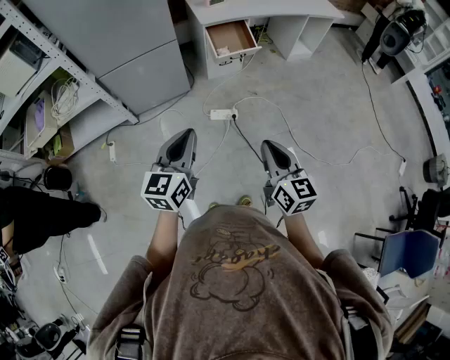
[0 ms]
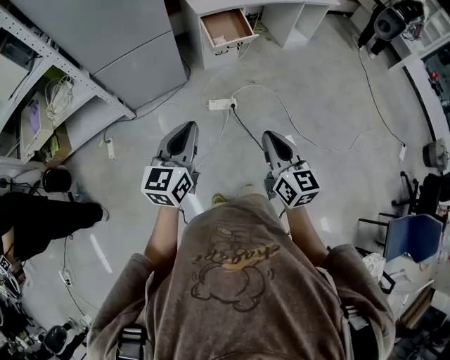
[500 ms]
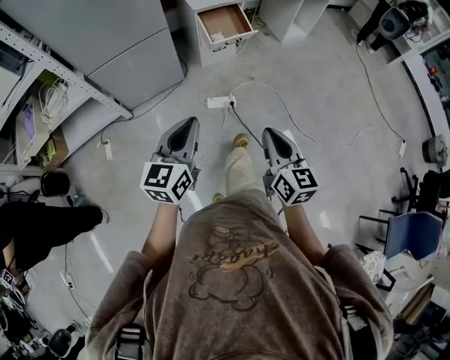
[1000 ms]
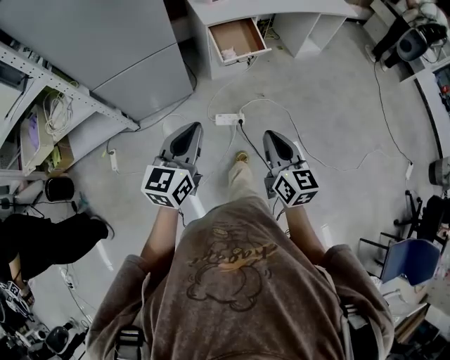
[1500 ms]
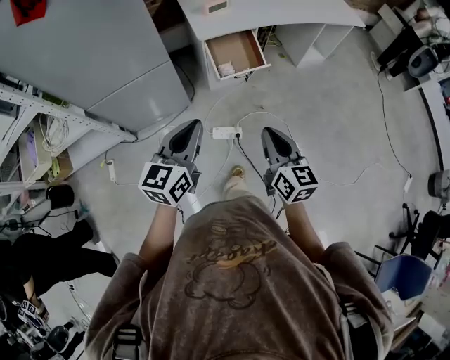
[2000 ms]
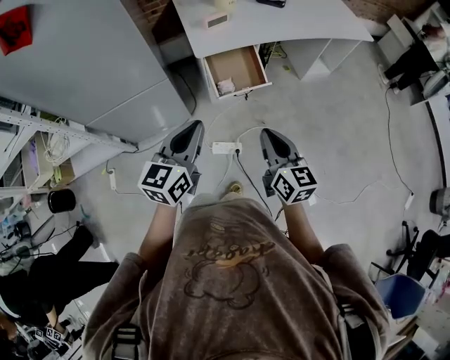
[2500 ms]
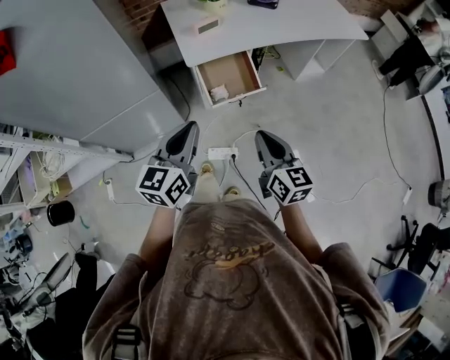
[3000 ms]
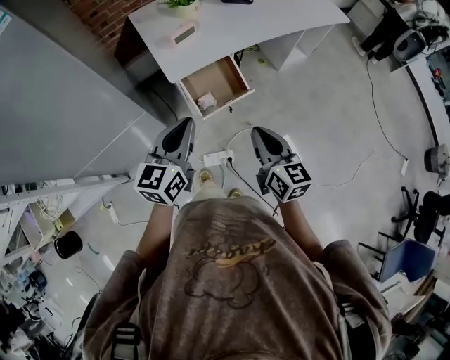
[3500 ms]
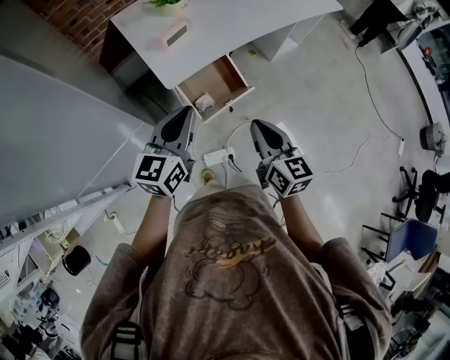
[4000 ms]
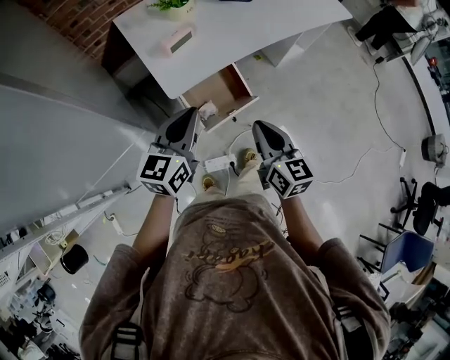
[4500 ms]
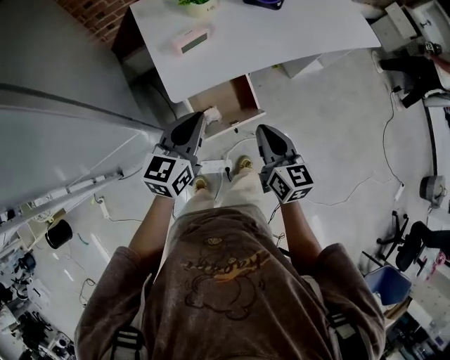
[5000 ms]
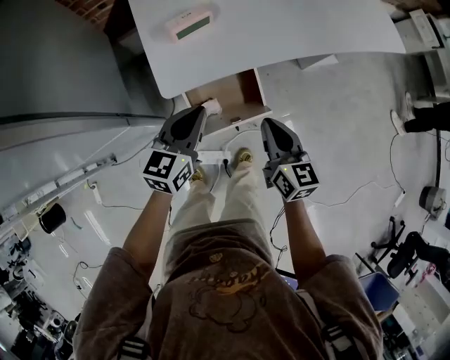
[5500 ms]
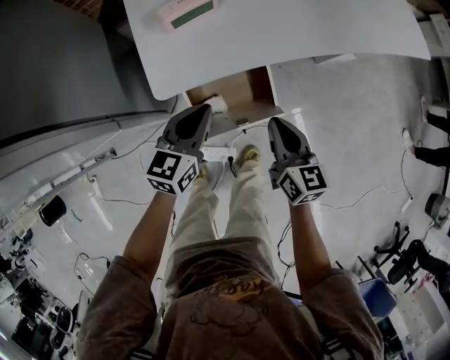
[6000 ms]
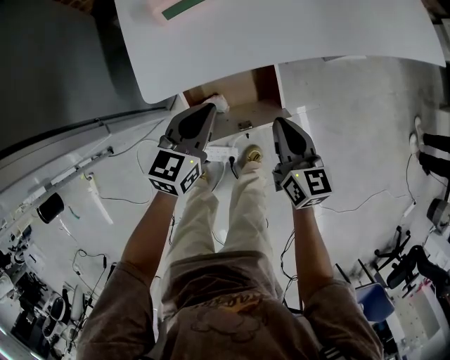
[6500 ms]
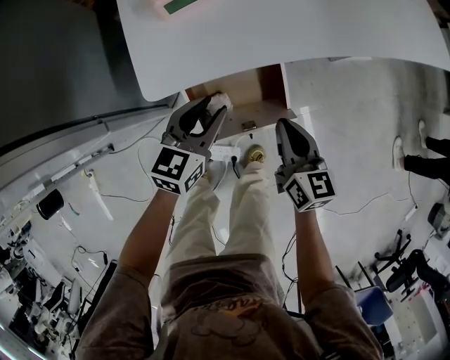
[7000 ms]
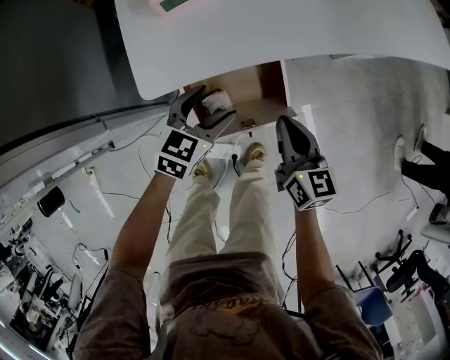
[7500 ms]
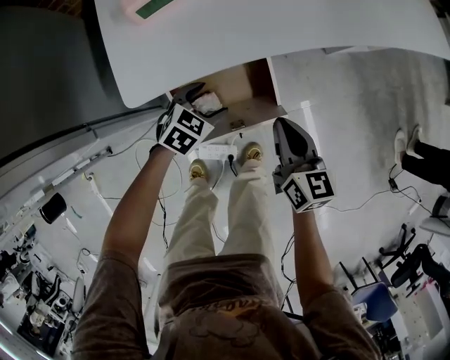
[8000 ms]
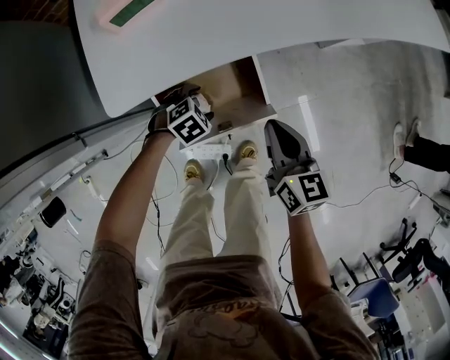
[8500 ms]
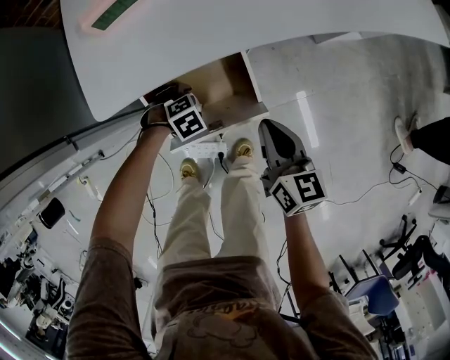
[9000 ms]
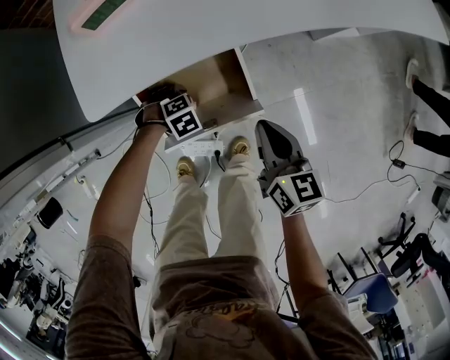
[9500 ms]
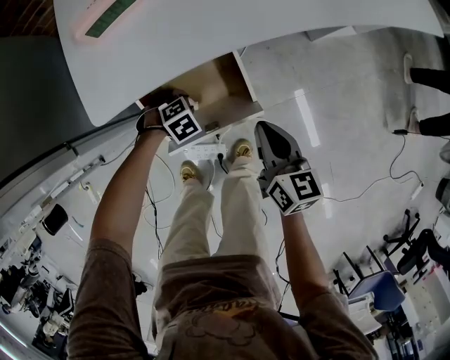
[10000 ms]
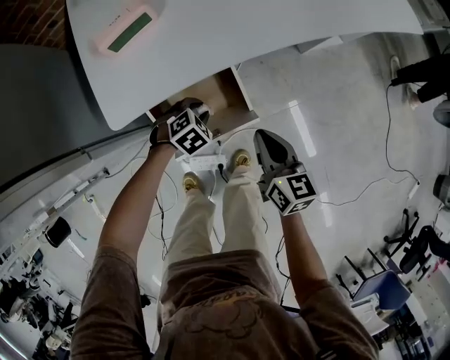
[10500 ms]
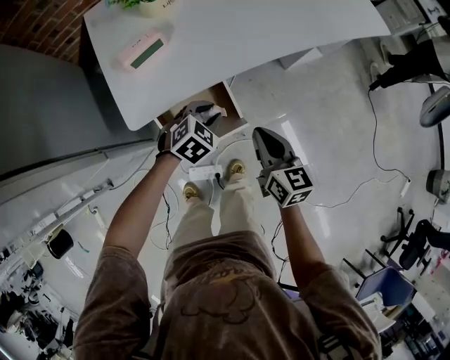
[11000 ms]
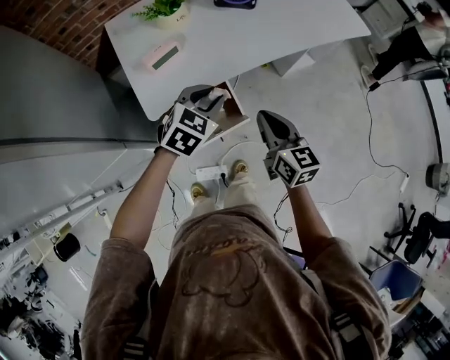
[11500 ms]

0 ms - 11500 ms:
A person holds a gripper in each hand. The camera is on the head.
0 ms - 2000 ms: Both grippers move forward, about 25 cm.
2000 ms - 4000 ms: The grippers both shift forward by about 30 cm.
4000 ms - 6000 ms: The right gripper travels forward and downward by approximately 25 cm. Meanwhile the left gripper travels downward and forward by roughly 25 cm.
6000 ms - 7500 ms: The left gripper heads downward, covering roughly 10 cm, and opens, while the right gripper shifts about 5 cm downward.
7500 ms - 9500 ms: The right gripper ends up about 5 cm from where it was. Meanwhile the left gripper goes about 20 cm downward, points its fingers roughly 50 degrees further downward, and closes up.
9500 ms - 11500 ms: The left gripper goes roughly 40 cm upward, and tilts its fingers some 50 degrees upward. Meanwhile the right gripper goes roughly 25 cm upward.

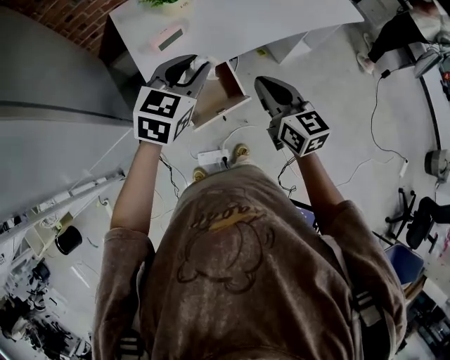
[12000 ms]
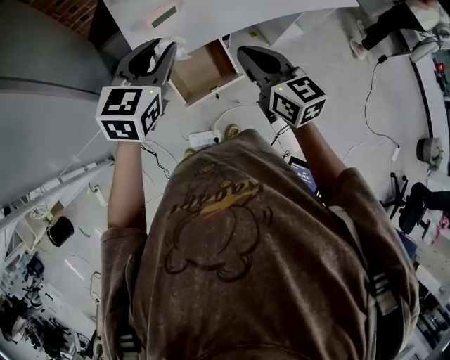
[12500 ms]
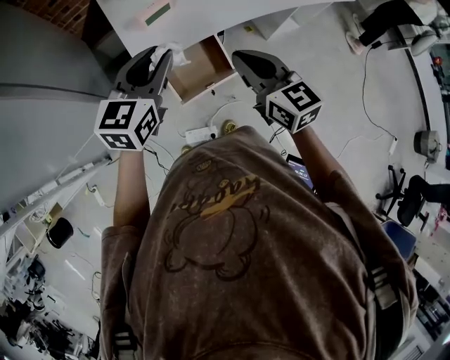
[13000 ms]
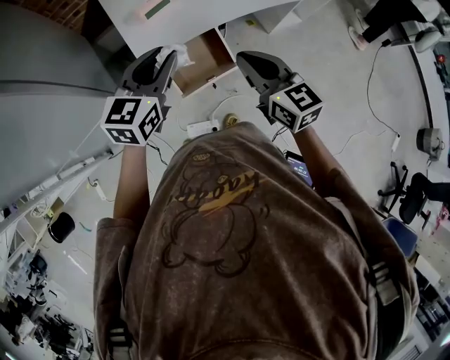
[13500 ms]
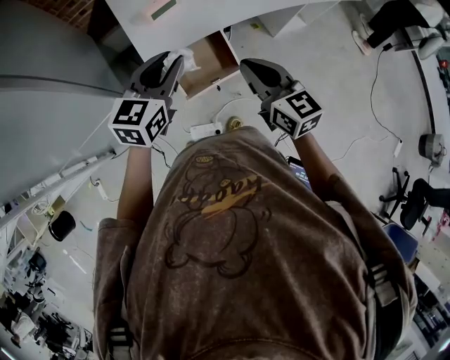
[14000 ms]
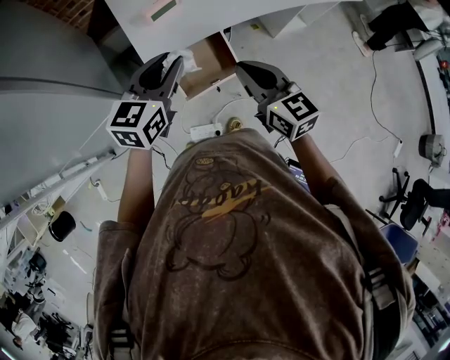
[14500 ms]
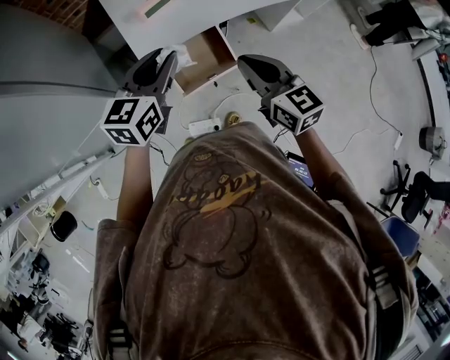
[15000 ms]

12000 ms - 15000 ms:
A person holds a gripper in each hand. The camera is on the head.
12000 ms - 13500 ms: The left gripper moves to the left and backward, some 10 cm; the right gripper changes place by some 5 cm.
13500 ms - 15000 ms: The grippers stay close to where they were, moving slightly.

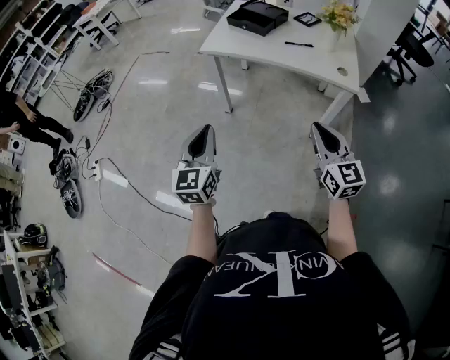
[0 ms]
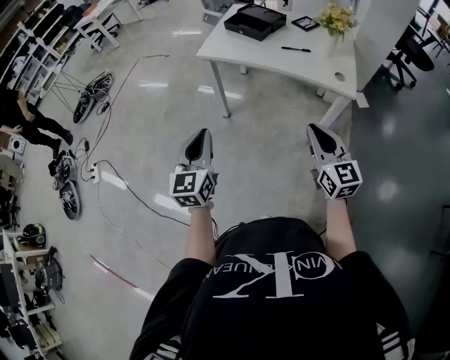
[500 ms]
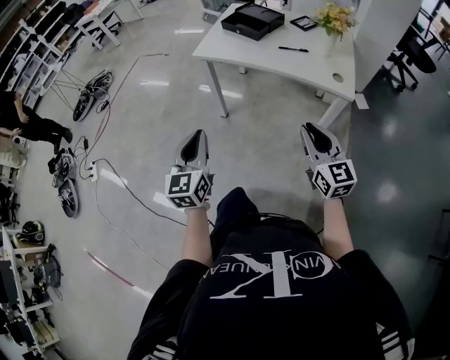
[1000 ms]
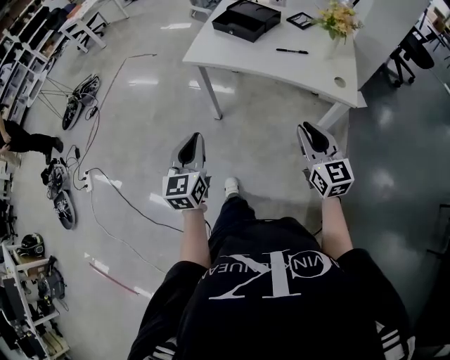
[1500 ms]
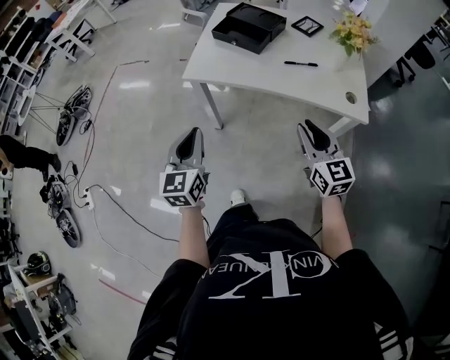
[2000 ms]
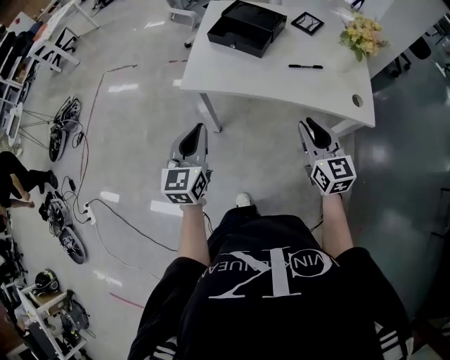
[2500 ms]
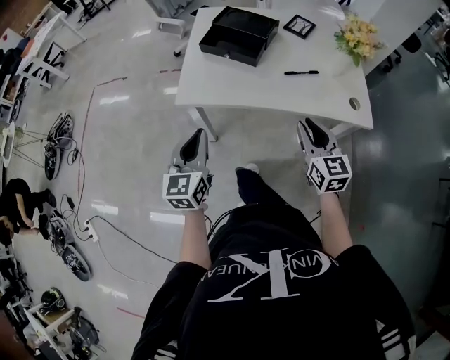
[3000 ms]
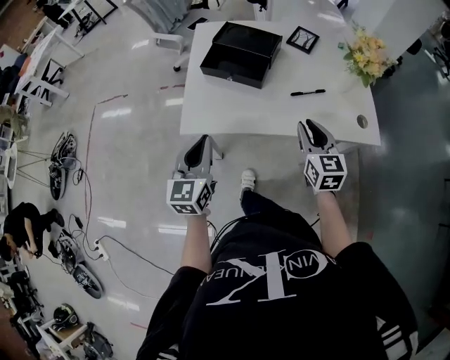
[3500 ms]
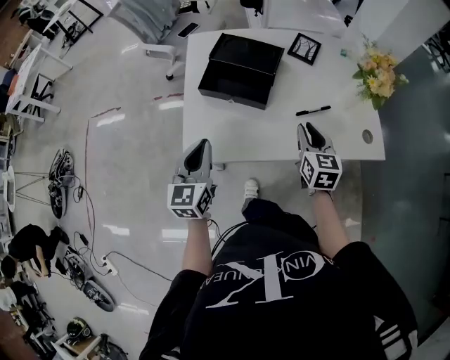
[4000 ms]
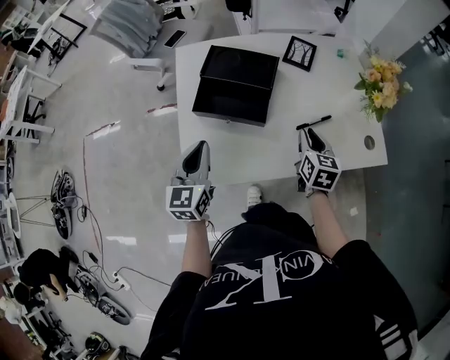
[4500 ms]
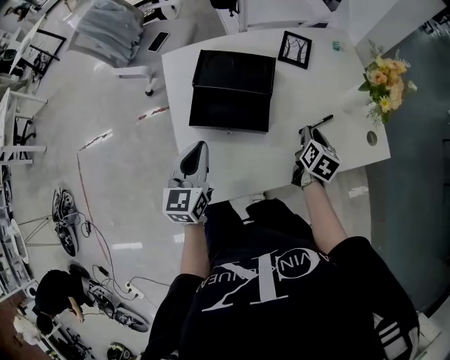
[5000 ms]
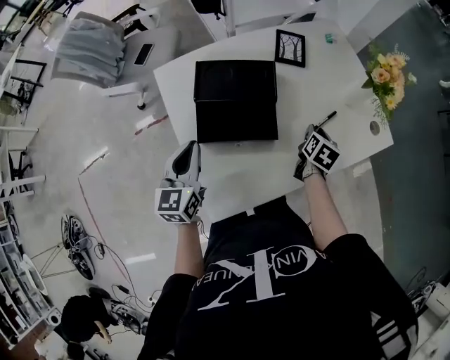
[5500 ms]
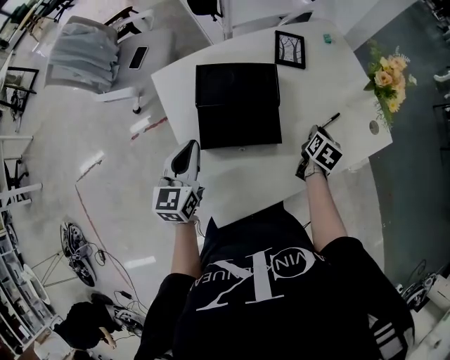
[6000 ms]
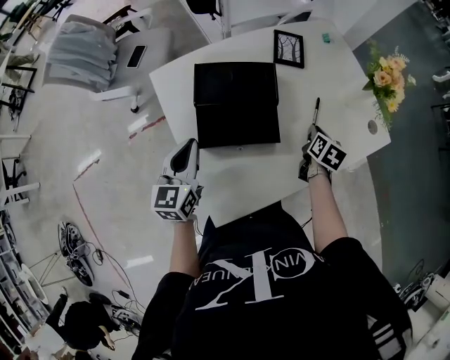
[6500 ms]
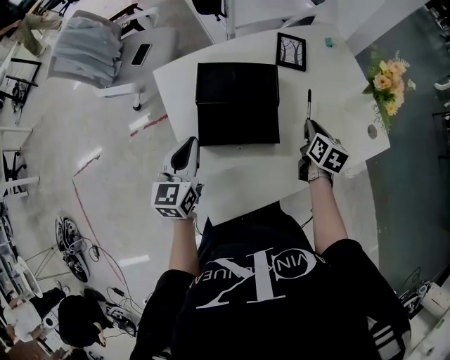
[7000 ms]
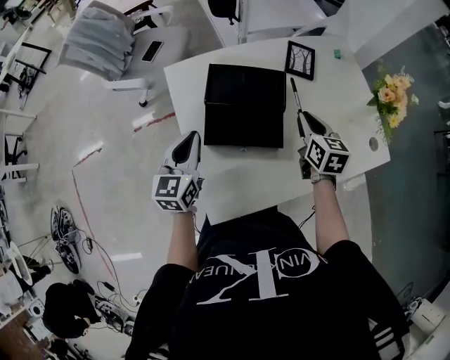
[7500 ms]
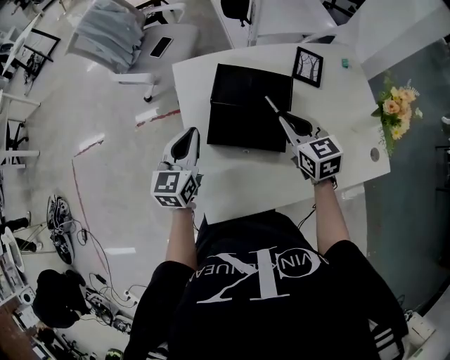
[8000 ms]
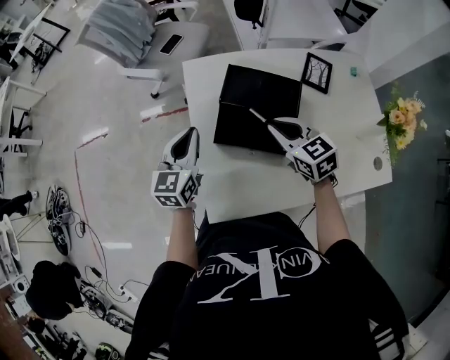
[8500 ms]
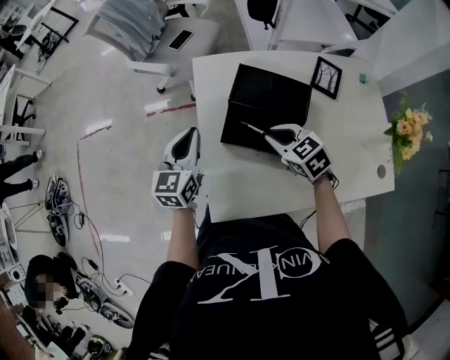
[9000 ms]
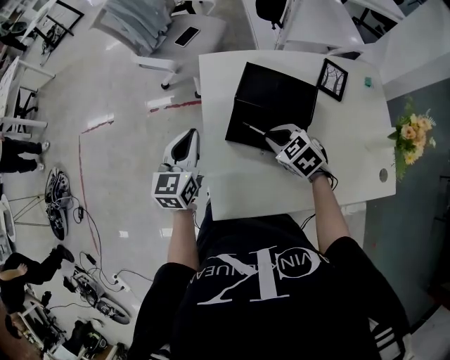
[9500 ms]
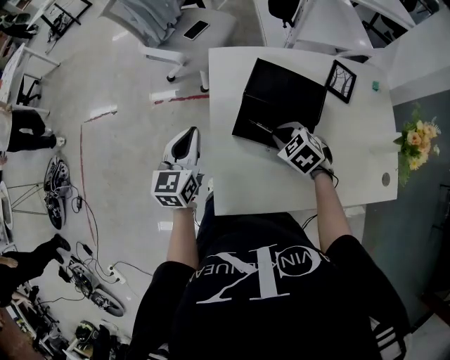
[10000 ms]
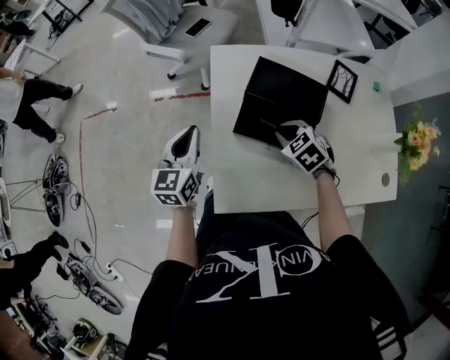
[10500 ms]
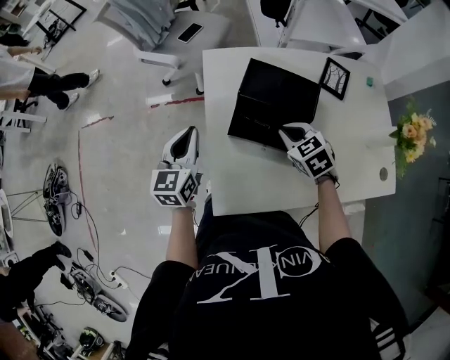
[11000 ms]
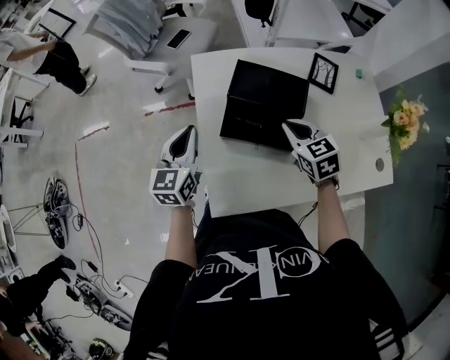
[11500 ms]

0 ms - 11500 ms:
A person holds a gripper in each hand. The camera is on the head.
0 ms - 2000 ms: The grippers both shift forward by approximately 25 cm.
2000 ms - 4000 ms: The two grippers go some 30 cm forward. The right gripper rotates some 30 degrees.
4000 ms - 6000 ms: The left gripper shifts by about 25 cm, and turns by some 20 degrees. The right gripper changes place by about 15 cm, and changes its angle by about 60 degrees.
6000 ms - 7500 ms: The right gripper heads to the left and upward, covering about 15 cm, and rotates roughly 40 degrees.
7500 ms - 9500 ms: The left gripper shifts by roughly 5 cm. Meanwhile the right gripper ends up approximately 20 cm from where it was, and swivels some 60 degrees.
9500 ms - 11500 ms: The right gripper moves to the right and upward, roughly 10 cm, and changes its angle by about 30 degrees.

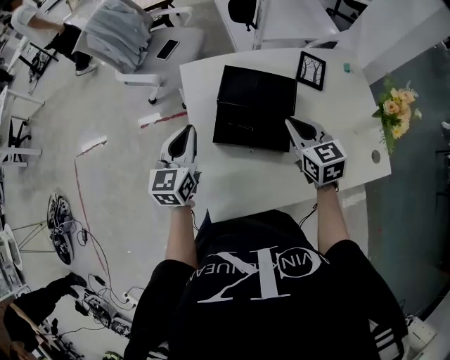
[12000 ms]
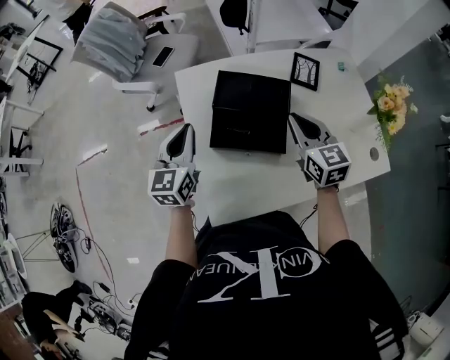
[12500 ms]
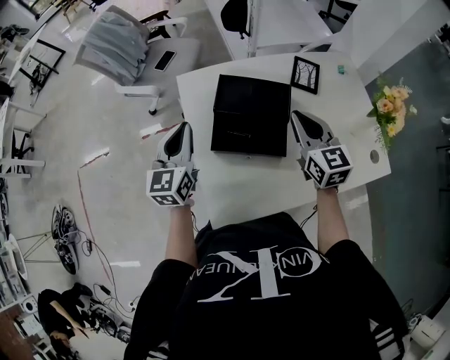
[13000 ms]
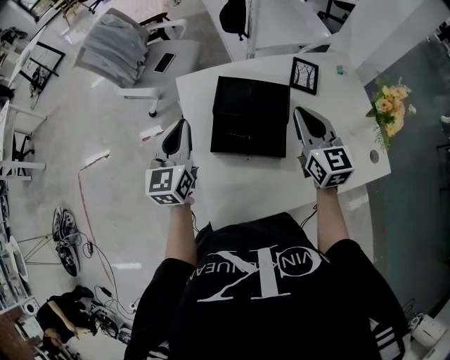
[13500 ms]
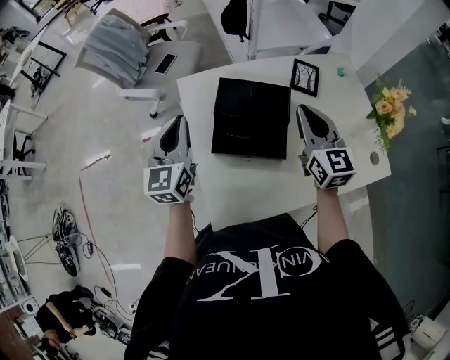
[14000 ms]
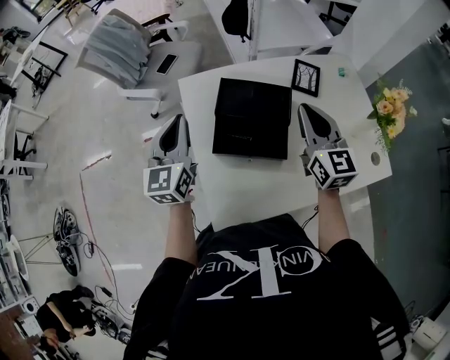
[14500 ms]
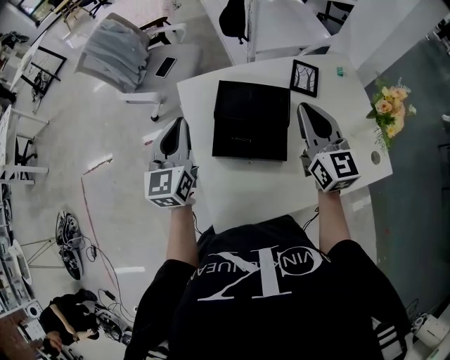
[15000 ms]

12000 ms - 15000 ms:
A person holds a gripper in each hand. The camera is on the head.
12000 ms - 13500 ms: The left gripper moves approximately 5 cm, while the right gripper moves upward, roughly 5 cm, and turns by approximately 20 degrees.
13500 ms - 15000 ms: The grippers move only a little.
